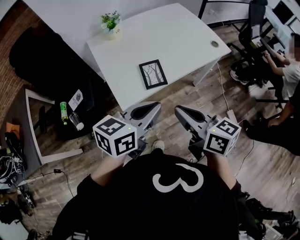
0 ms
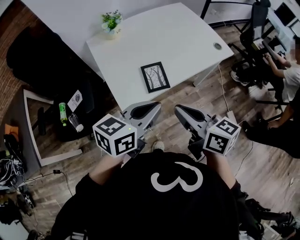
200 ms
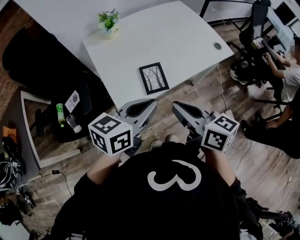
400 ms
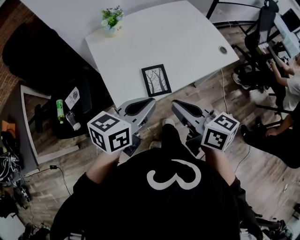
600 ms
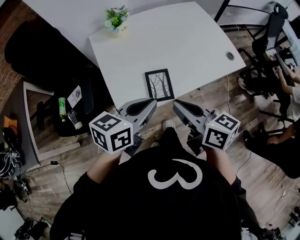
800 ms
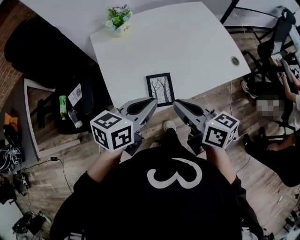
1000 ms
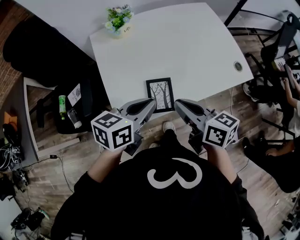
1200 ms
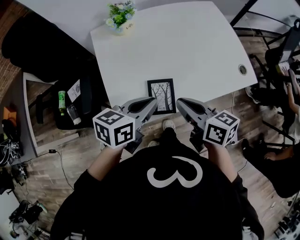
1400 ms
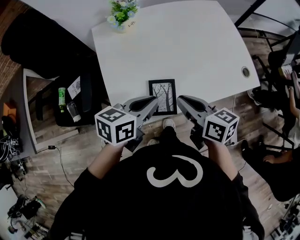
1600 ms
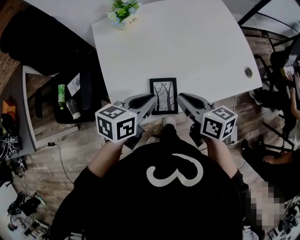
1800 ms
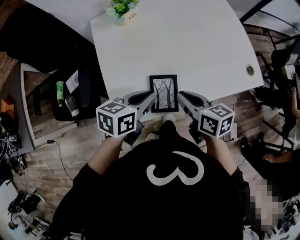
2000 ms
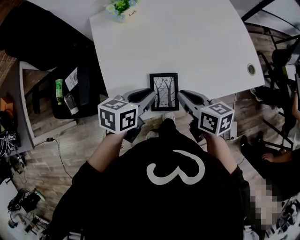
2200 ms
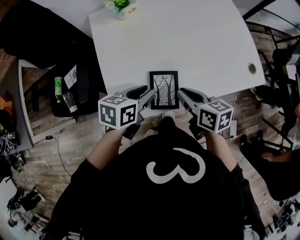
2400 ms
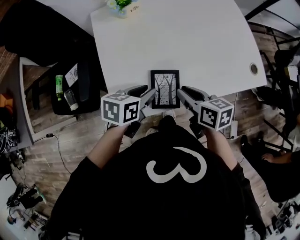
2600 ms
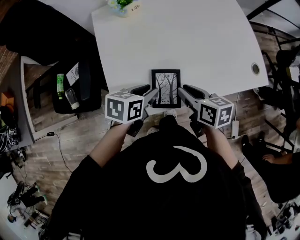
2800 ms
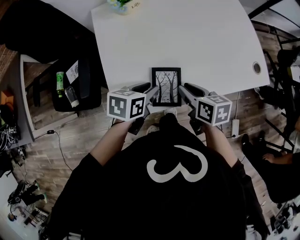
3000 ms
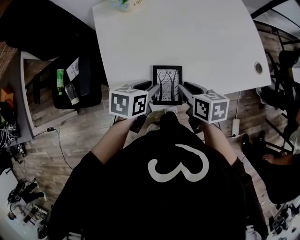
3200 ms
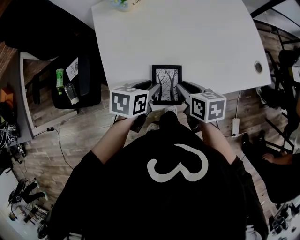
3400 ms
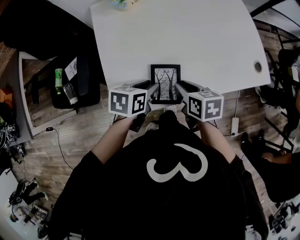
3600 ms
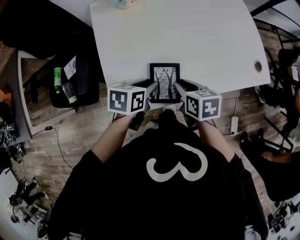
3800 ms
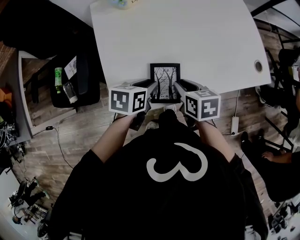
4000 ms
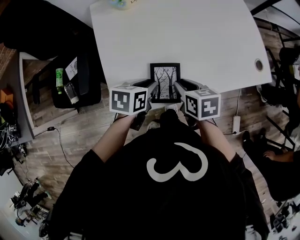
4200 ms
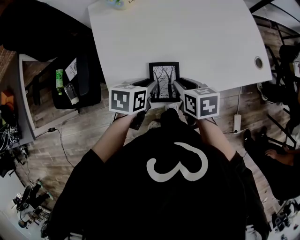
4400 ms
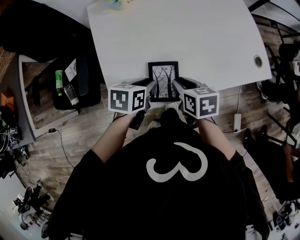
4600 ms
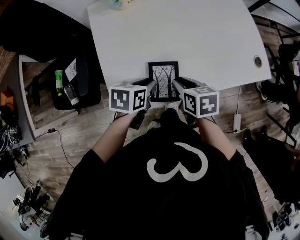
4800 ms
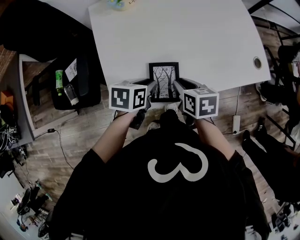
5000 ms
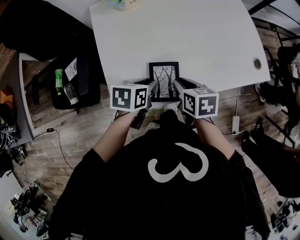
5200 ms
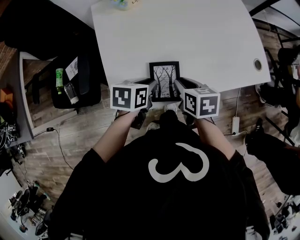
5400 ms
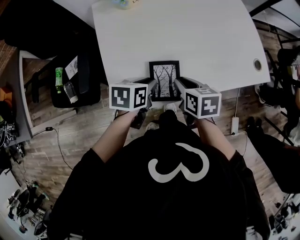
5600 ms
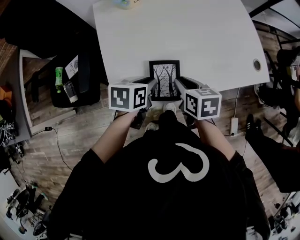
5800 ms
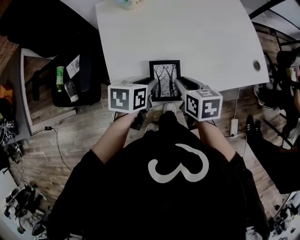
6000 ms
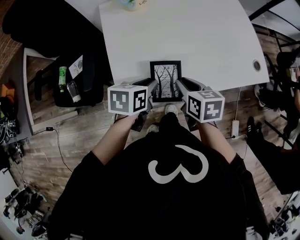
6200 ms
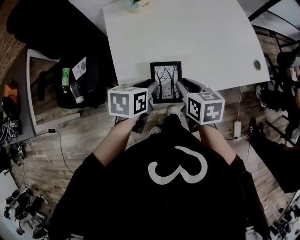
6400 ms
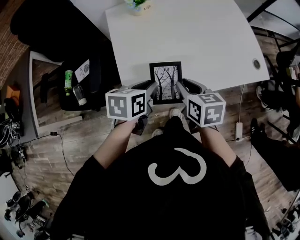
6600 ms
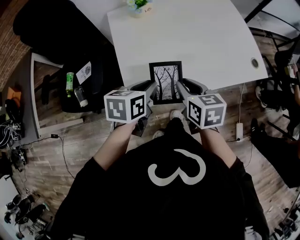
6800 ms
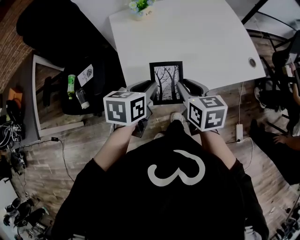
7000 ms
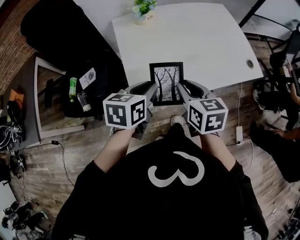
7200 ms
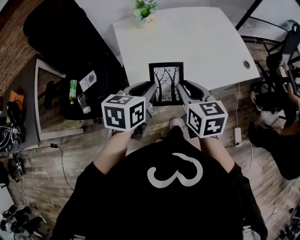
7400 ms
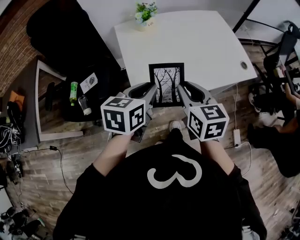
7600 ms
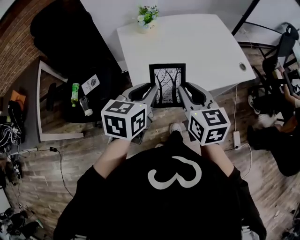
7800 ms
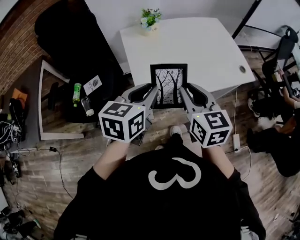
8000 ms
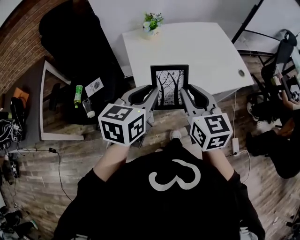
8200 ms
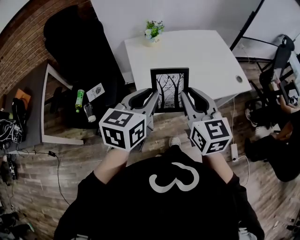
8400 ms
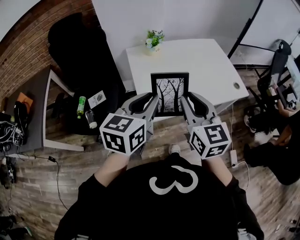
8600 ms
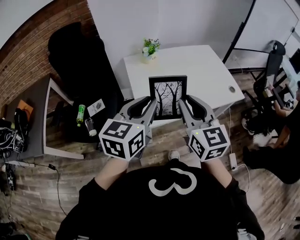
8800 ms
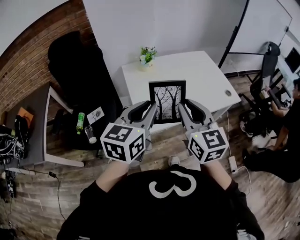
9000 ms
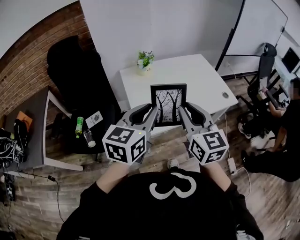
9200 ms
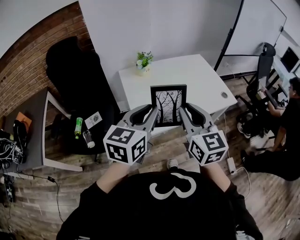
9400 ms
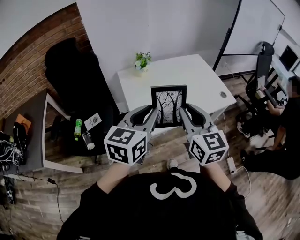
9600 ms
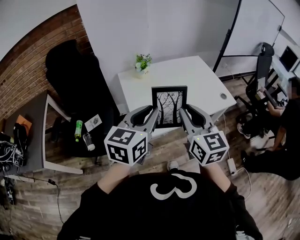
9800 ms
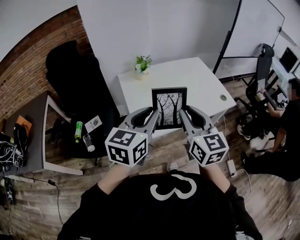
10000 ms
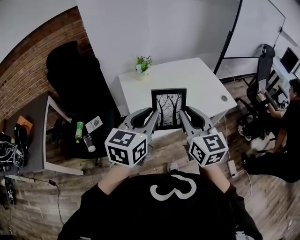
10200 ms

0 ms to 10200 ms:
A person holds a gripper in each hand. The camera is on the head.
0 ms to 1400 ms: The left gripper travels forward and downward by some 20 cm. The right gripper moves forward, roughly 20 cm.
1400 ms to 3000 ms: The grippers both shift downward by roughly 10 cm. The left gripper turns by about 20 degrees, and opens its fingers.
3000 ms to 5800 ms: There are only small adjustments of the grippers.
5800 ms to 7200 ms: Both grippers move upward and backward, some 15 cm.
7200 ms to 8800 ms: The grippers both shift upward and backward by approximately 20 cm. The right gripper swivels approximately 30 degrees, while the left gripper swivels about 30 degrees.
8800 ms to 10200 ms: There are only small adjustments of the grippers.

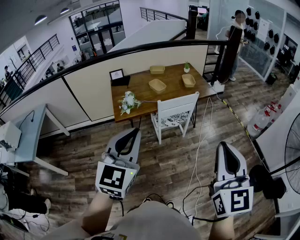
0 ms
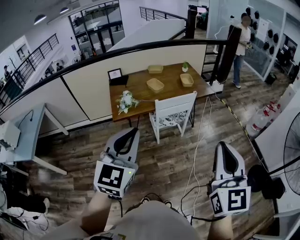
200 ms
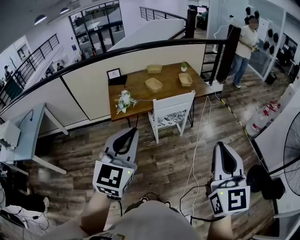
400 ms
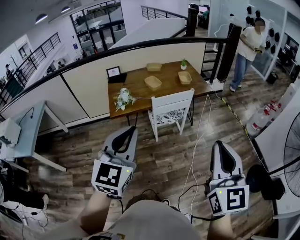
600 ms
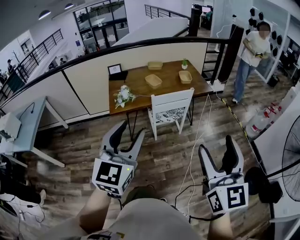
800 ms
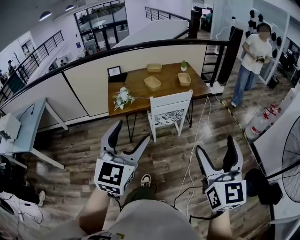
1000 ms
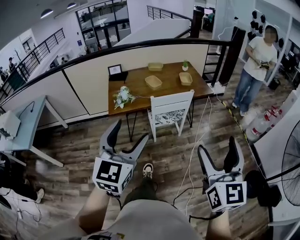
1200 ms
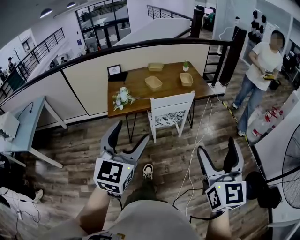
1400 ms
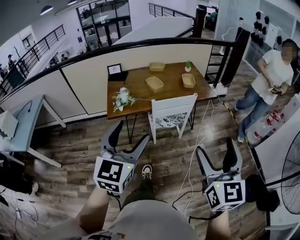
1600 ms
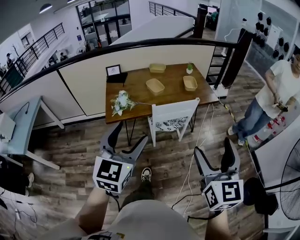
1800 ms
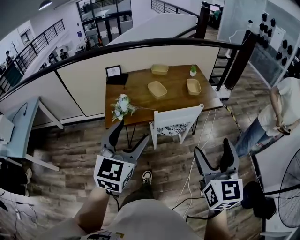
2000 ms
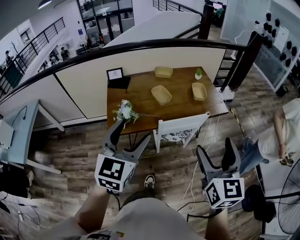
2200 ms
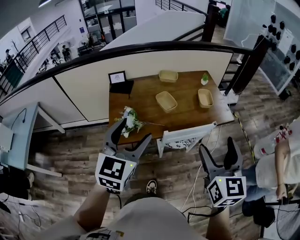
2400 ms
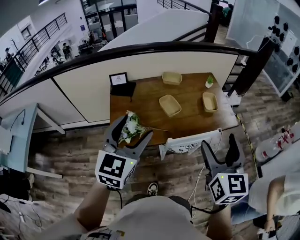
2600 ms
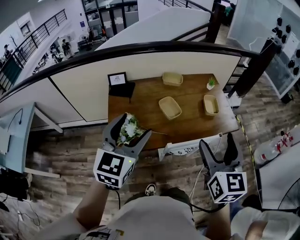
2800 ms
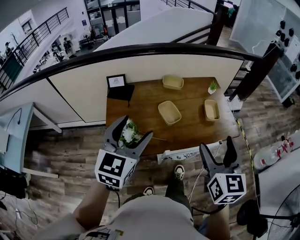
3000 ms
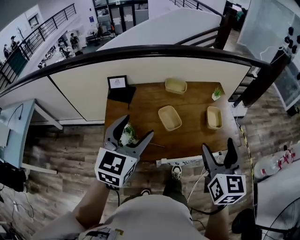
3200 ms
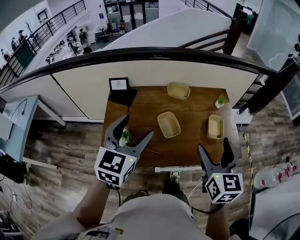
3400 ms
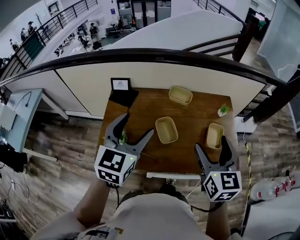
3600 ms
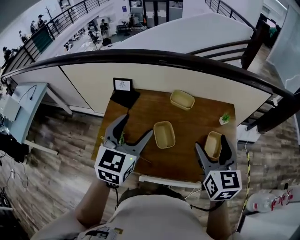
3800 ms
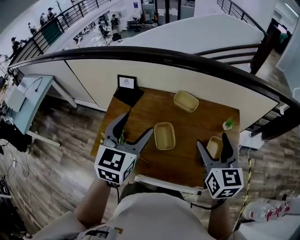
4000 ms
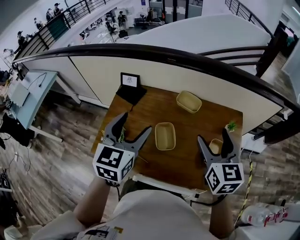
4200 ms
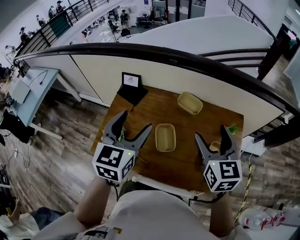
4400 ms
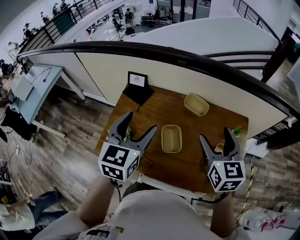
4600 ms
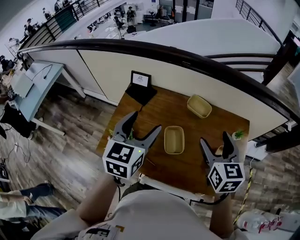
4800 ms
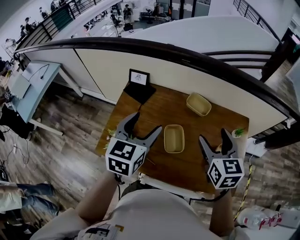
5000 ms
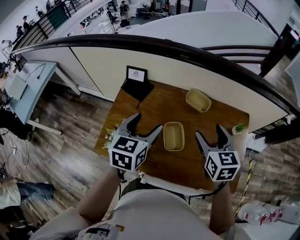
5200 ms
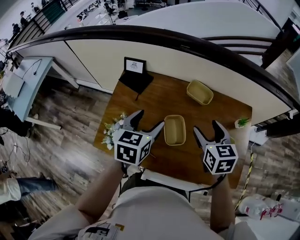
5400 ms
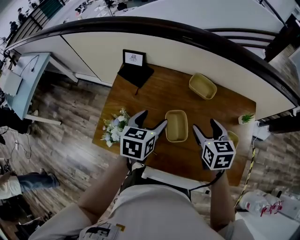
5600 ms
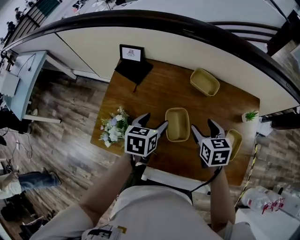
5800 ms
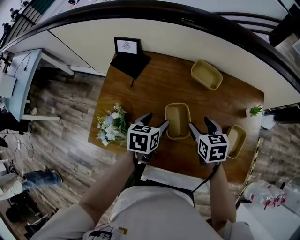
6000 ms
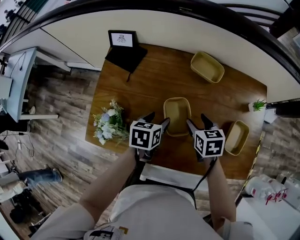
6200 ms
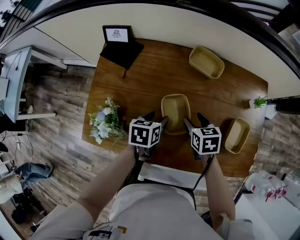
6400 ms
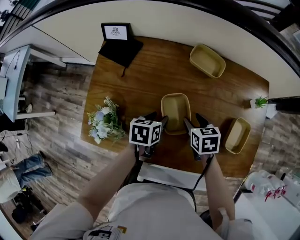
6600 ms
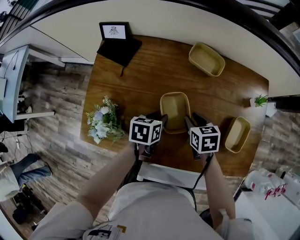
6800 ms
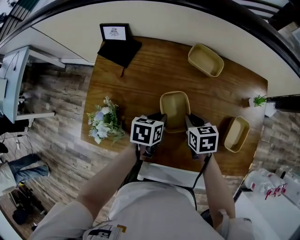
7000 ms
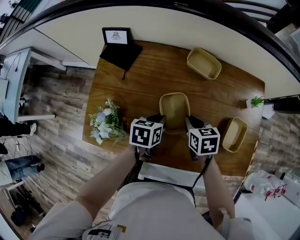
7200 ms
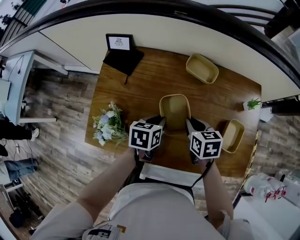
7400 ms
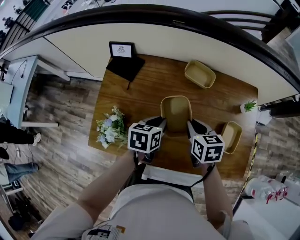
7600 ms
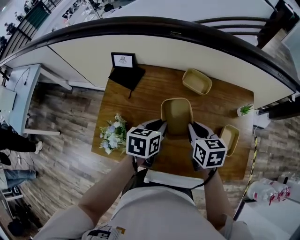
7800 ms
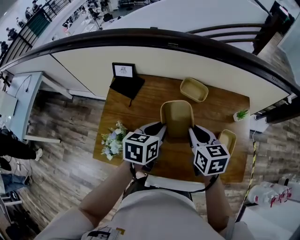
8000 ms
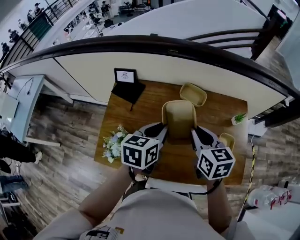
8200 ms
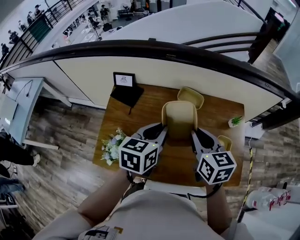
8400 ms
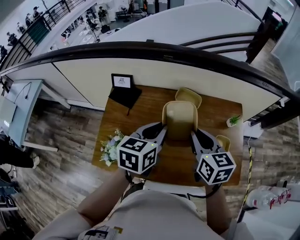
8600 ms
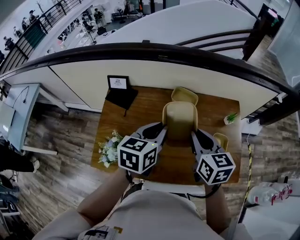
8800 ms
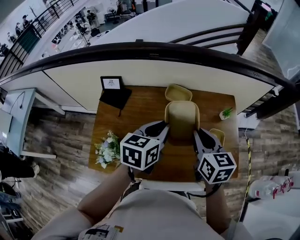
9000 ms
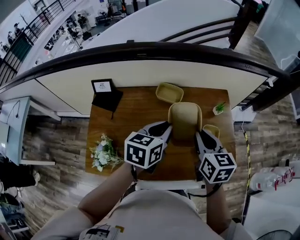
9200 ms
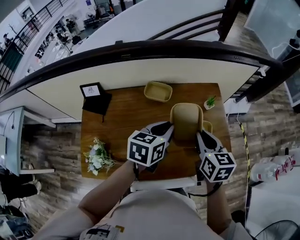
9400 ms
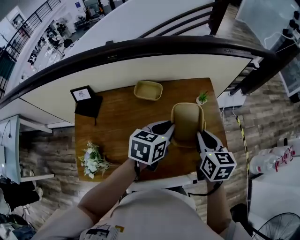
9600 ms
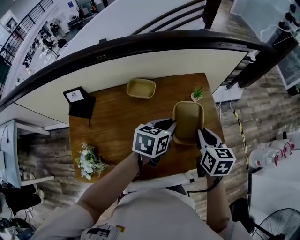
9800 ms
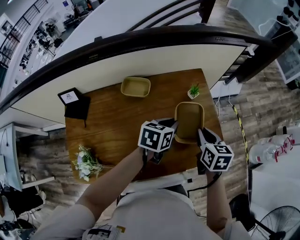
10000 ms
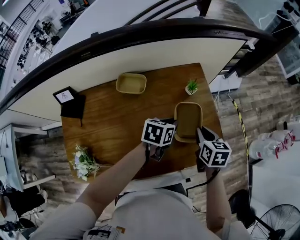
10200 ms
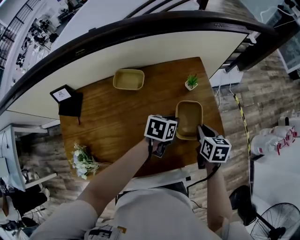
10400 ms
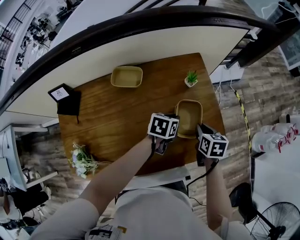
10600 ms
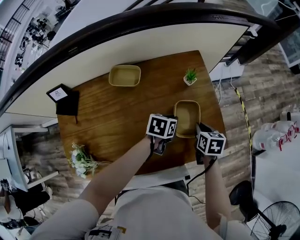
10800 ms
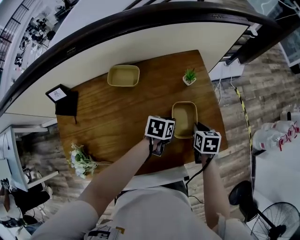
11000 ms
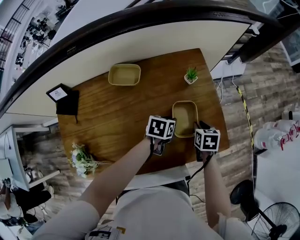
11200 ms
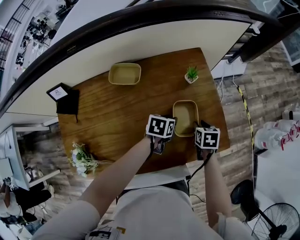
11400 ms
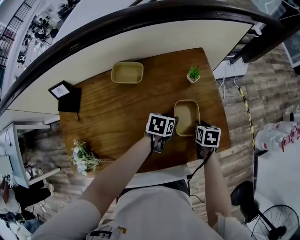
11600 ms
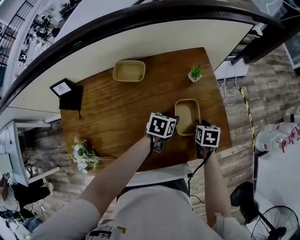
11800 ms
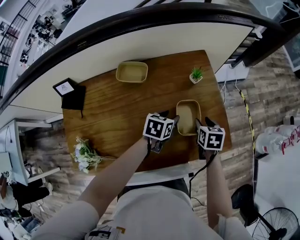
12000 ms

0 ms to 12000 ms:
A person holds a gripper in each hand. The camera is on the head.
0 ms to 1600 ms: The right gripper is displaced forward, downward and to the right by some 10 cm, and opens its fingers, while the left gripper heads forward, covering approximately 5 cm, and opens.
1600 ms to 3000 ms: The pair of grippers is taken forward, about 50 cm.
3000 ms to 4400 ms: The right gripper ends up approximately 35 cm from where it was, and changes its angle by some 30 degrees. The left gripper moves some 20 cm, and rotates some 30 degrees.
4400 ms to 6000 ms: The grippers both shift downward by approximately 30 cm. The left gripper angles its fingers downward, by approximately 30 degrees. Meanwhile the right gripper tips its fingers downward by approximately 30 degrees.
6000 ms to 7600 ms: The right gripper goes downward and returns, some 10 cm each way, and closes up. Meanwhile the left gripper travels downward and back again, some 10 cm each way, and closes its fingers.
7600 ms to 9000 ms: Both grippers move upward, approximately 20 cm. The left gripper swivels about 20 degrees. The right gripper rotates approximately 20 degrees.
9000 ms to 10400 ms: The right gripper changes place by about 35 cm, and turns by roughly 30 degrees. Meanwhile the left gripper moves about 35 cm, and changes its angle by roughly 40 degrees.
10400 ms to 12000 ms: The left gripper opens up. The right gripper heads downward, covering approximately 5 cm, and opens.

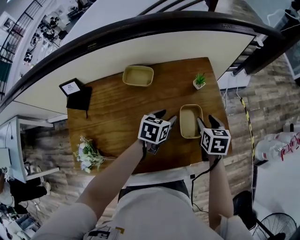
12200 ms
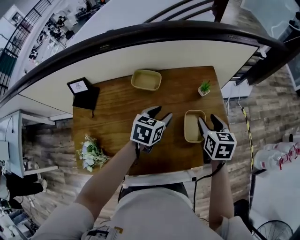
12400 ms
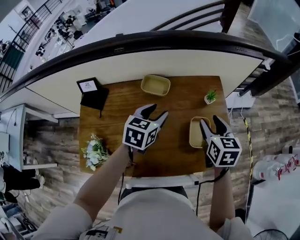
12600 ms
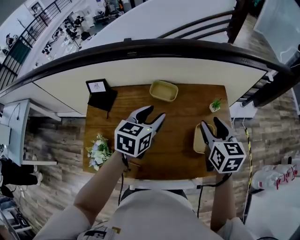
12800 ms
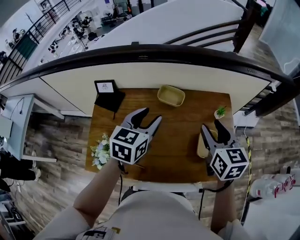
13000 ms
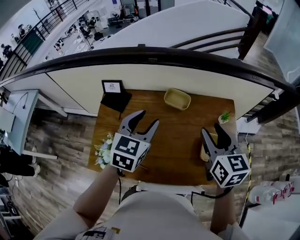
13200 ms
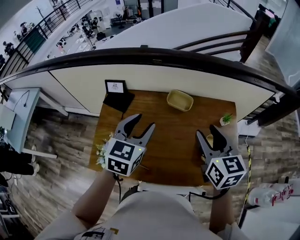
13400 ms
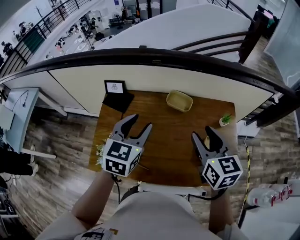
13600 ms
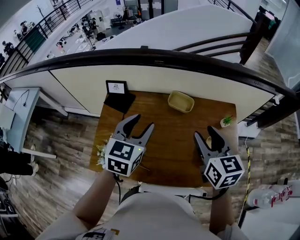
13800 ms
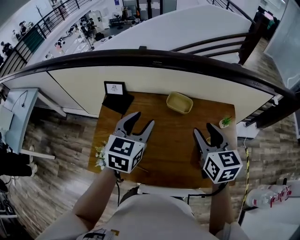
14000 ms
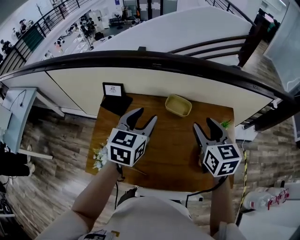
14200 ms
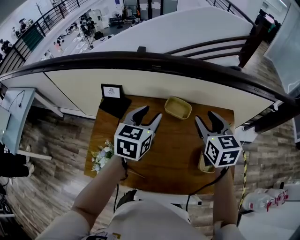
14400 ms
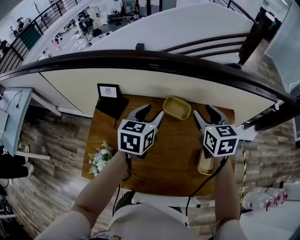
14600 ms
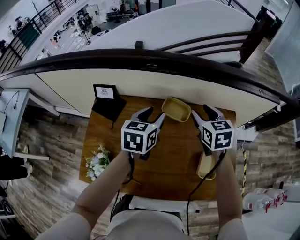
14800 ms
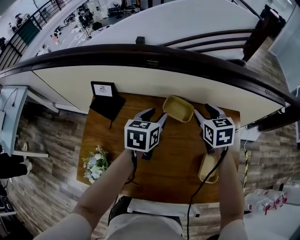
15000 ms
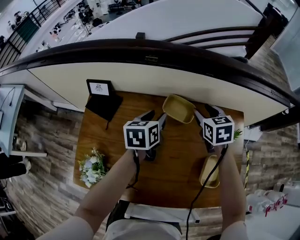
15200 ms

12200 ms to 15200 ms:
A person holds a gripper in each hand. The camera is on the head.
12200 ms to 13800 ms: The left gripper ends up about 40 cm from where it was, and changes its angle by approximately 40 degrees; the right gripper moves upward, some 25 cm, and changes its angle by some 40 degrees.
13800 ms to 15200 ms: The right gripper heads forward and downward, covering some 30 cm, and changes its angle by some 20 degrees. The left gripper shifts some 30 cm downward and forward, and rotates roughly 30 degrees.
